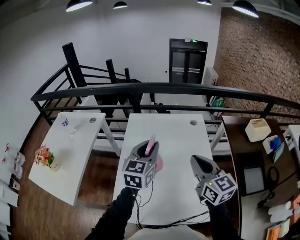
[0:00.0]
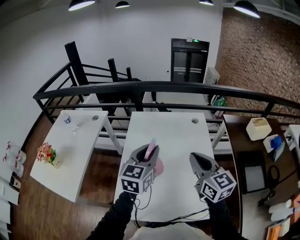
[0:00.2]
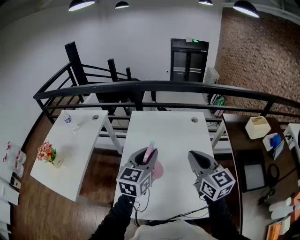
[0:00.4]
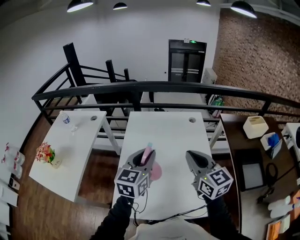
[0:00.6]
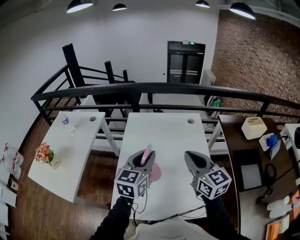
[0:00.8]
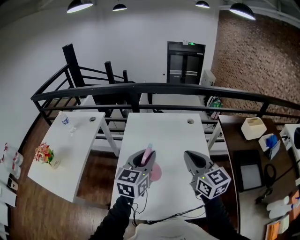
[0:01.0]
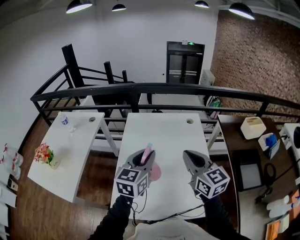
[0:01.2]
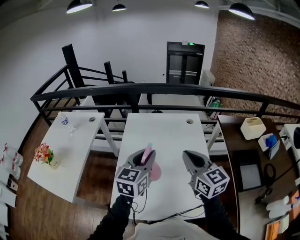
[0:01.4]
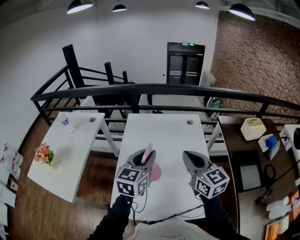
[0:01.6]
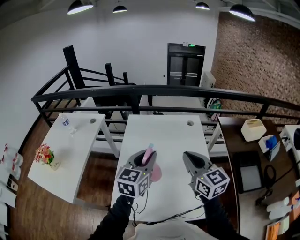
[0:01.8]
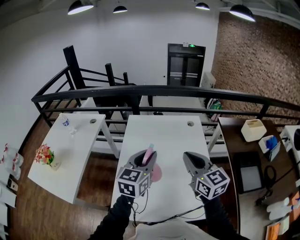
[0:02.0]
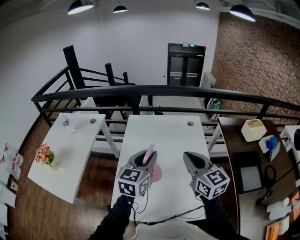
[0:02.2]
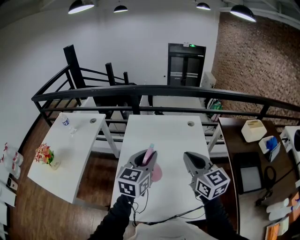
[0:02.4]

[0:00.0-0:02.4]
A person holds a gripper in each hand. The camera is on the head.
0:00.0 to 0:01.2: The left gripper goes approximately 10 cm backward.
0:01.2 to 0:02.4: Both grippers stay about where they are.

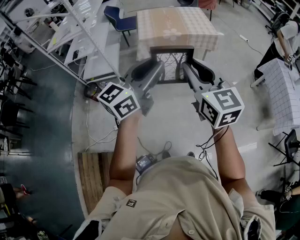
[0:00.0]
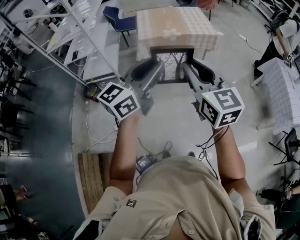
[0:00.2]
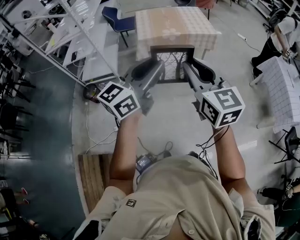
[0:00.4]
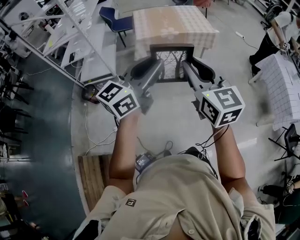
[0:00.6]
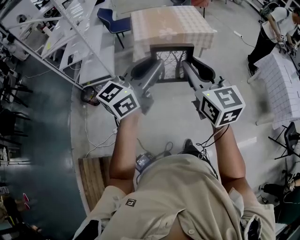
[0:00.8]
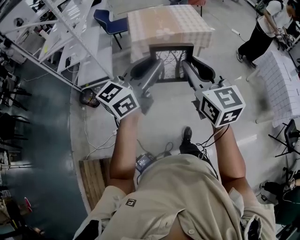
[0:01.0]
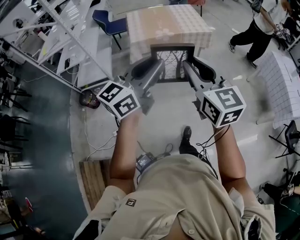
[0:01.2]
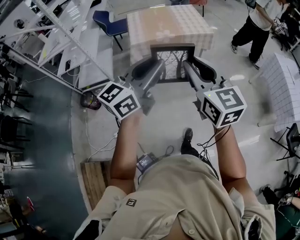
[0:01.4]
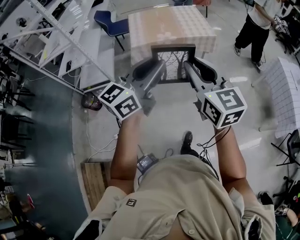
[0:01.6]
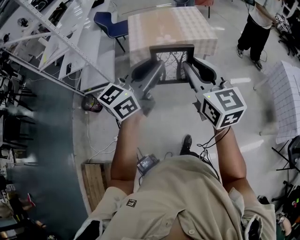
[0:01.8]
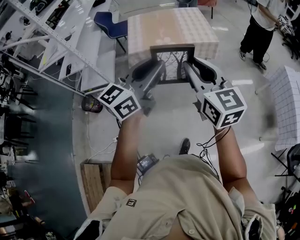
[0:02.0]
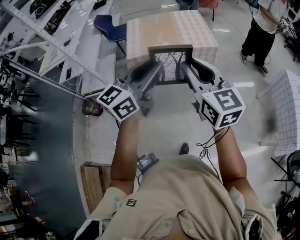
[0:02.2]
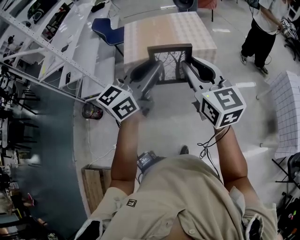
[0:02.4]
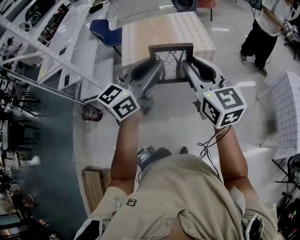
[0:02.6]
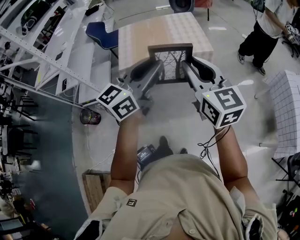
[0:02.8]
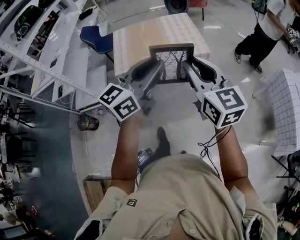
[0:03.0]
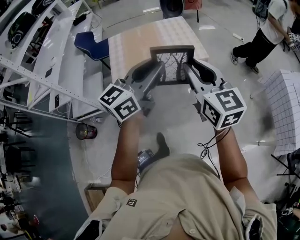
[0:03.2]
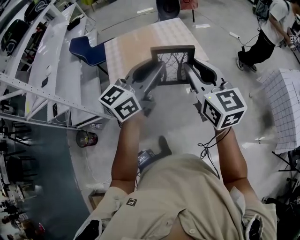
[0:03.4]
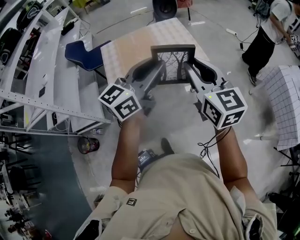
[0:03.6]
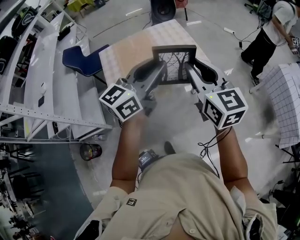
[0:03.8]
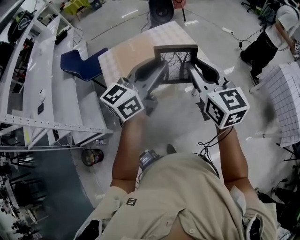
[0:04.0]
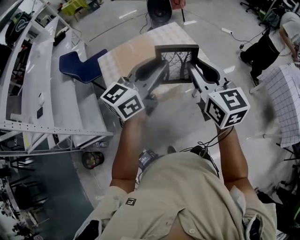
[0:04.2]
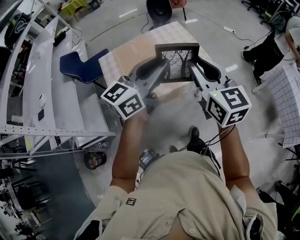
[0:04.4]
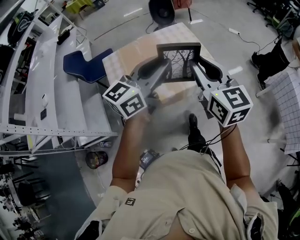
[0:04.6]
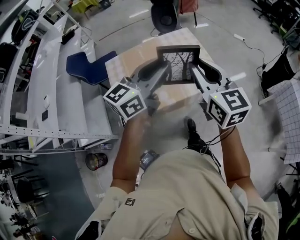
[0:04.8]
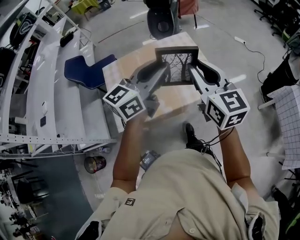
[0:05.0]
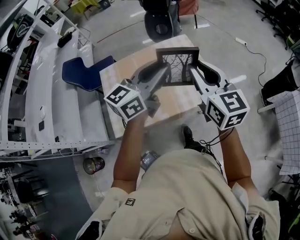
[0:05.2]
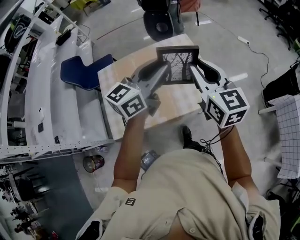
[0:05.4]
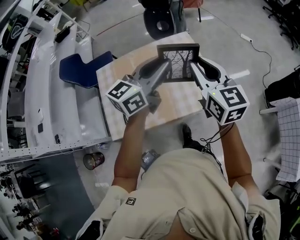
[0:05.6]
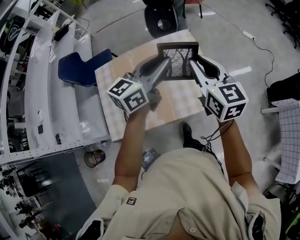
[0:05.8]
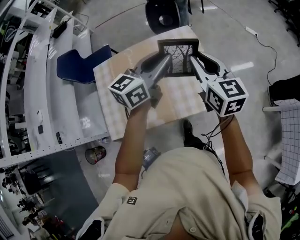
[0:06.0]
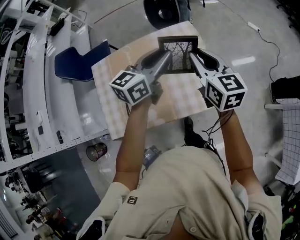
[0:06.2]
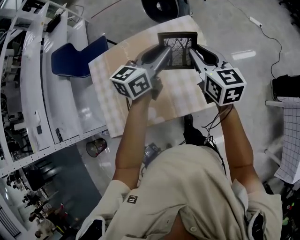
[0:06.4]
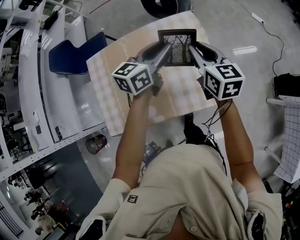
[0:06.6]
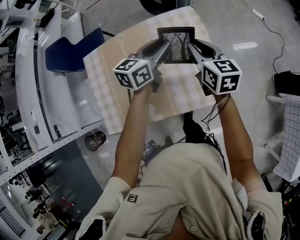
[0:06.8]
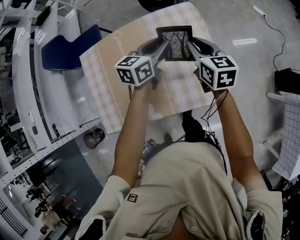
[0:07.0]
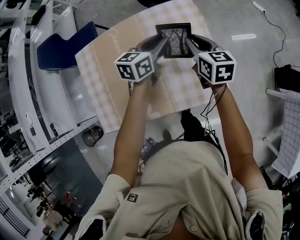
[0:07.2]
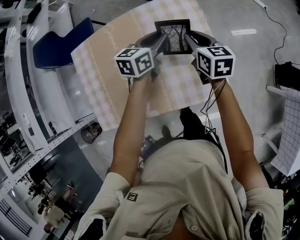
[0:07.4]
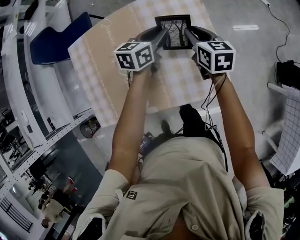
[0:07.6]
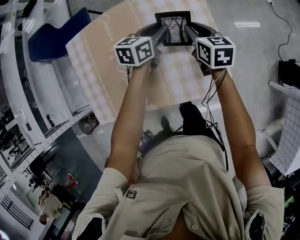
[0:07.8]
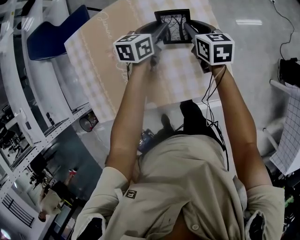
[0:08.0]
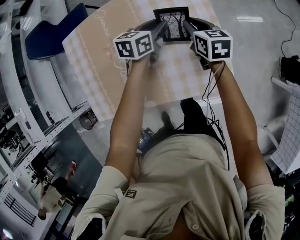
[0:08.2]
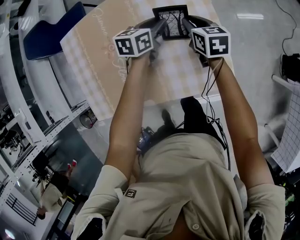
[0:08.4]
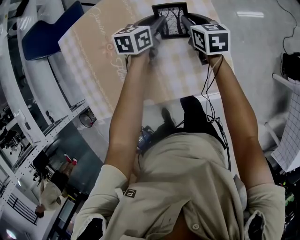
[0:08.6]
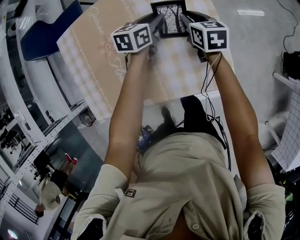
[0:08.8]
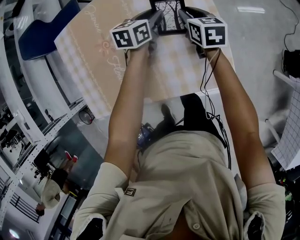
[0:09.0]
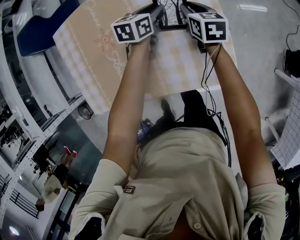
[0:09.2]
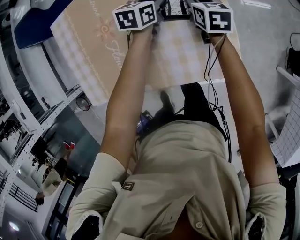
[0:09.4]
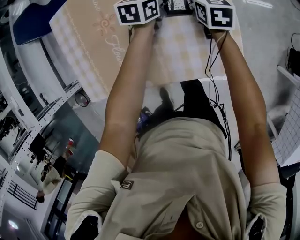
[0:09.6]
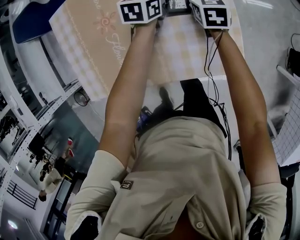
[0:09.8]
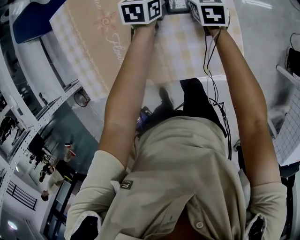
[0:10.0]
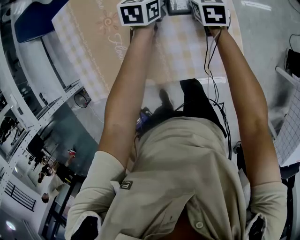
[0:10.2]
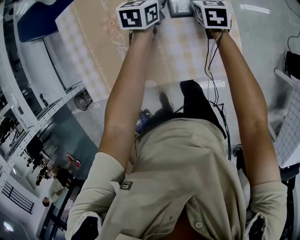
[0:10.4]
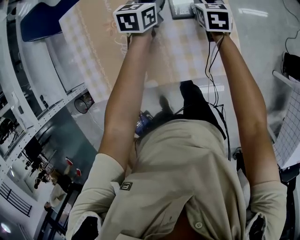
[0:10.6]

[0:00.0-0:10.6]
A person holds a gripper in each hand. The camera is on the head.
0:00.0 to 0:01.6: Both grippers move forward, about 20 cm.
0:01.6 to 0:03.0: Both grippers move forward and to the right, roughly 25 cm.
0:03.0 to 0:04.6: Both grippers travel together forward and to the left, roughly 30 cm.
0:04.6 to 0:06.0: The grippers both shift forward by about 35 cm.
0:06.0 to 0:07.6: The two grippers go about 30 cm downward and forward. The left gripper rotates some 30 degrees. The right gripper changes its angle by roughly 20 degrees.
0:07.6 to 0:09.0: Both grippers move downward, about 10 cm.
0:09.0 to 0:10.6: The left gripper is displaced upward by about 5 cm.

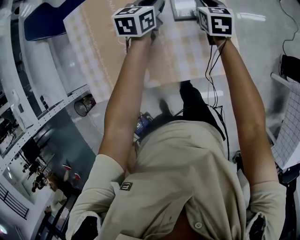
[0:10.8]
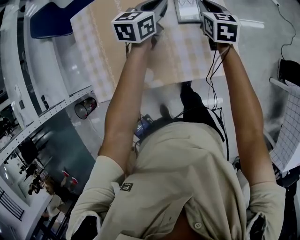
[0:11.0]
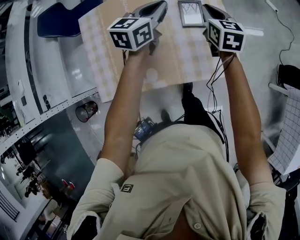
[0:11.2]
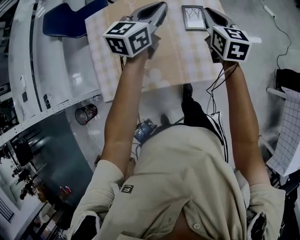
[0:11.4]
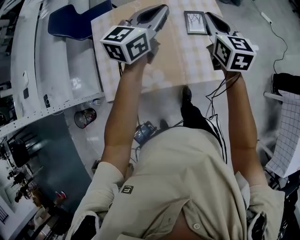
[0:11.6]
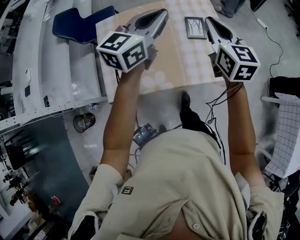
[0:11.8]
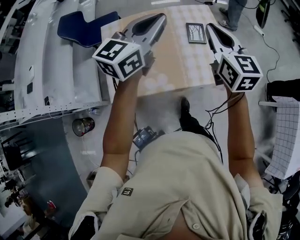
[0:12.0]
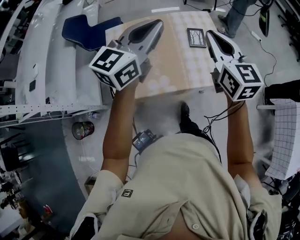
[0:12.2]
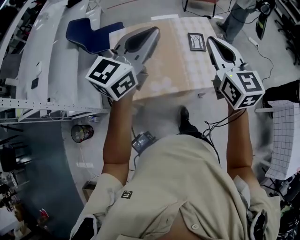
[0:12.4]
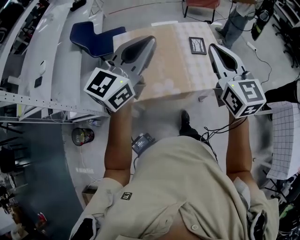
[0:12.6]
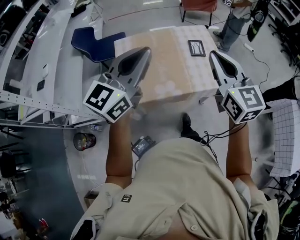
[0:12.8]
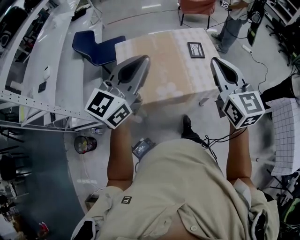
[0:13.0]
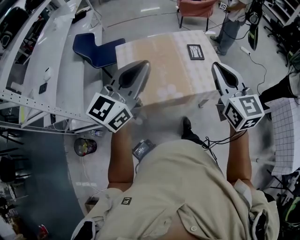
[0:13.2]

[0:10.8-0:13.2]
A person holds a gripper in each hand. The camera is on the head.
0:10.8 to 0:12.0: Both grippers move upward and backward, about 40 cm. The left gripper turns by approximately 30 degrees; the right gripper changes its angle by approximately 30 degrees.
0:12.0 to 0:13.2: Both grippers travel together backward, about 25 cm.

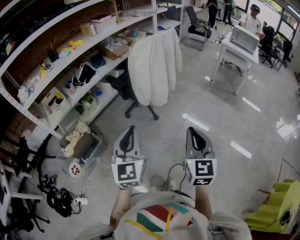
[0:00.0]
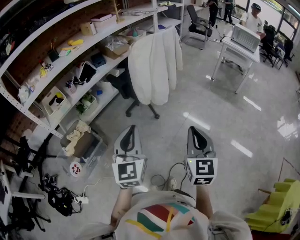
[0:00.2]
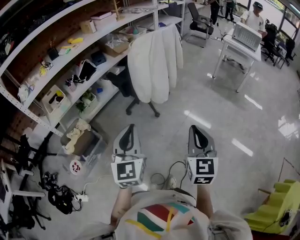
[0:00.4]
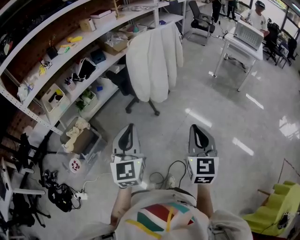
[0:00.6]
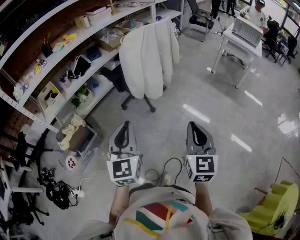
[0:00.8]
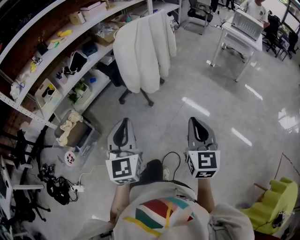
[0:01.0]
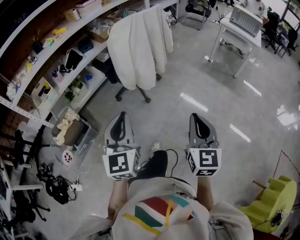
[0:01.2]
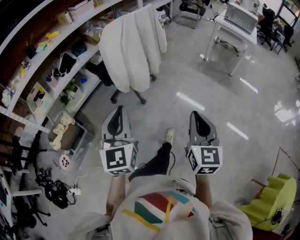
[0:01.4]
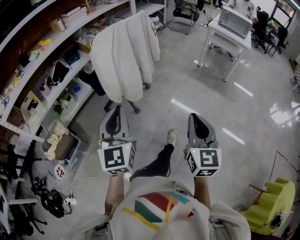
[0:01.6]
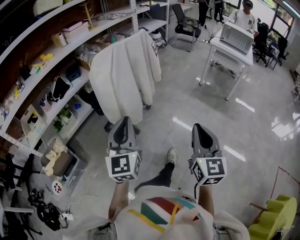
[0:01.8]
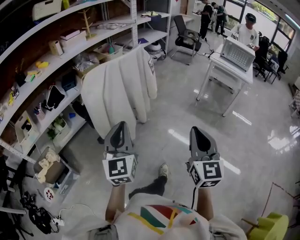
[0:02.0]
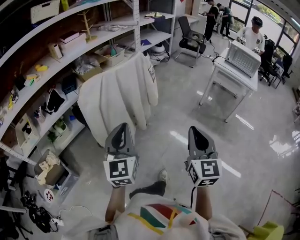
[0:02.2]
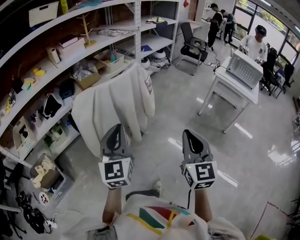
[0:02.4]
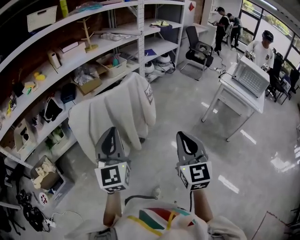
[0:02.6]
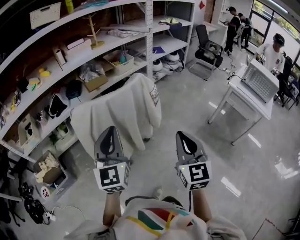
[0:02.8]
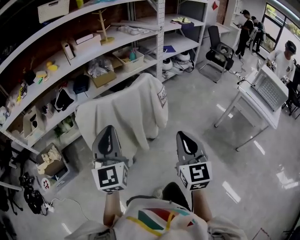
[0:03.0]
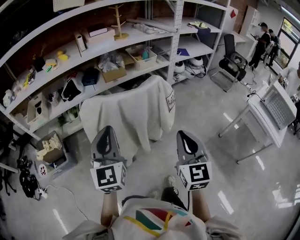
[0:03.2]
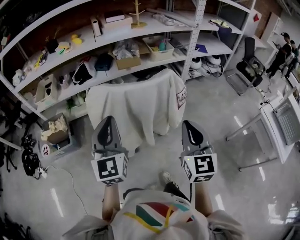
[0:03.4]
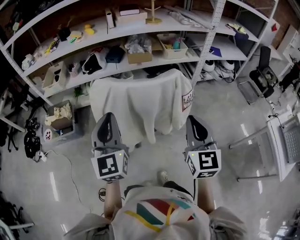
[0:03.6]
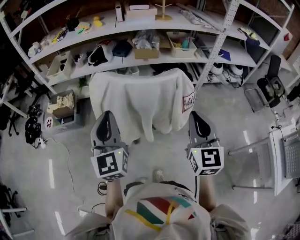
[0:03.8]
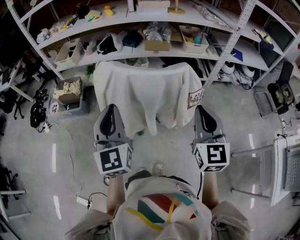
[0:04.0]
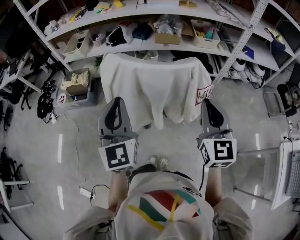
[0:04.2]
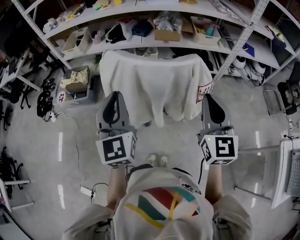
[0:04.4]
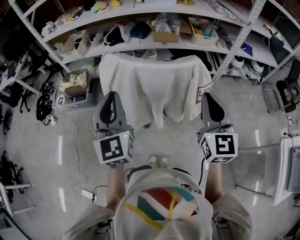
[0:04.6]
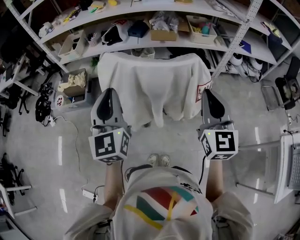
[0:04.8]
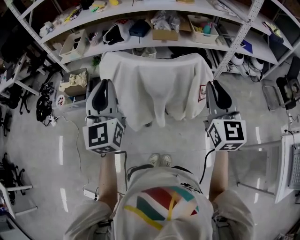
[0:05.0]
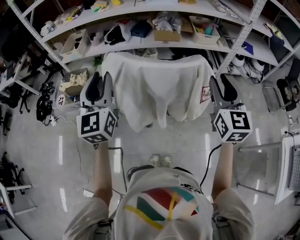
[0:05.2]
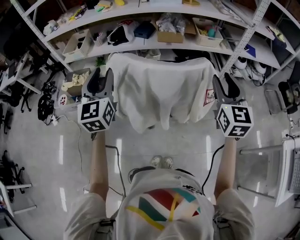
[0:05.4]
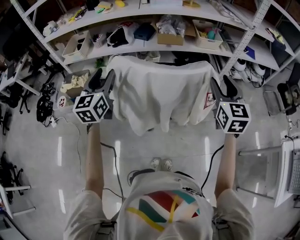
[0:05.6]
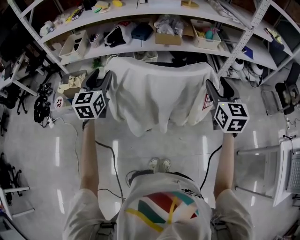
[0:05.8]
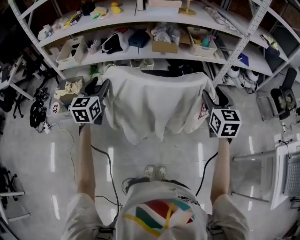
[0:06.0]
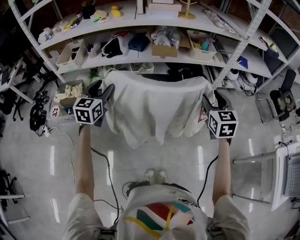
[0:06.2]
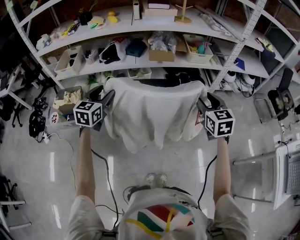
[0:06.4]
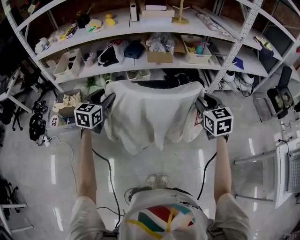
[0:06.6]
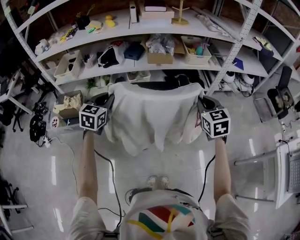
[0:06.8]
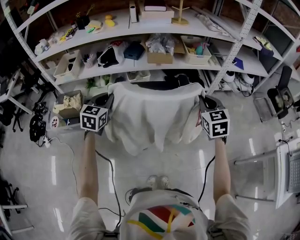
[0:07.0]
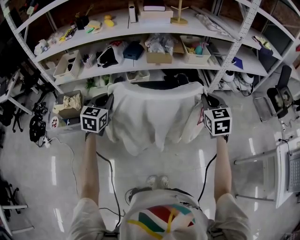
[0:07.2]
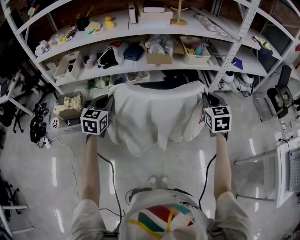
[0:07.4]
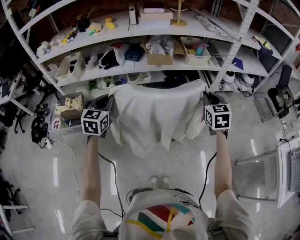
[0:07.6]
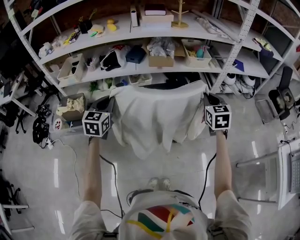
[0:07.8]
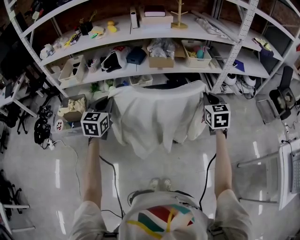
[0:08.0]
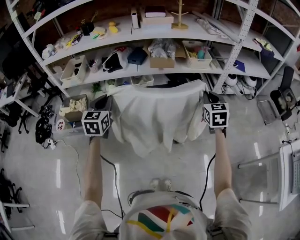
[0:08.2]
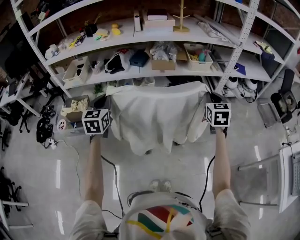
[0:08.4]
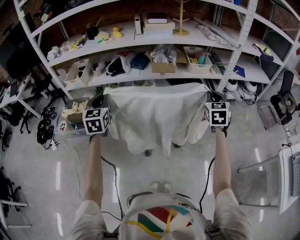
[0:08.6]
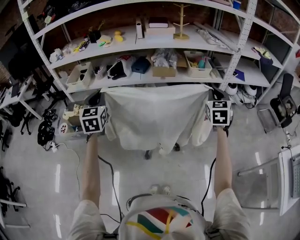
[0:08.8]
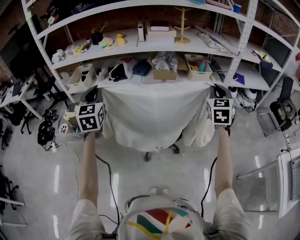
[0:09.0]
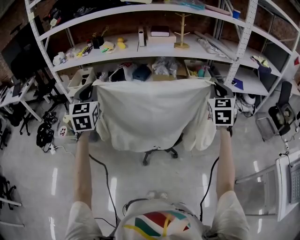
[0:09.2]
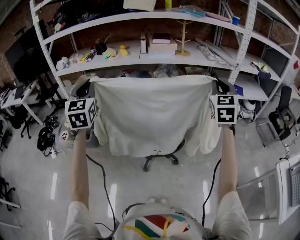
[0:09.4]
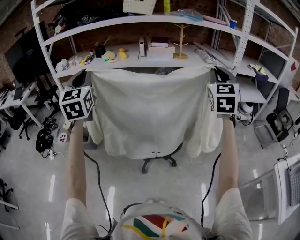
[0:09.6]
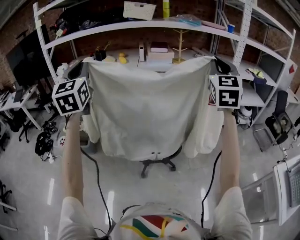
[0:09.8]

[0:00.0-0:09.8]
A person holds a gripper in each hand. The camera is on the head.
0:00.0 to 0:01.4: The grippers both shift to the right and forward by about 15 cm.
0:01.4 to 0:02.8: Both grippers are carried forward, some 50 cm. The right gripper turns by approximately 20 degrees.
0:02.8 to 0:04.2: The right gripper shifts by some 20 cm, and swivels approximately 40 degrees. Meanwhile the left gripper swivels approximately 40 degrees.
0:04.2 to 0:05.6: The right gripper heads forward, covering roughly 10 cm, and opens. Meanwhile the left gripper travels forward and to the left by roughly 20 cm, and opens up.
0:05.6 to 0:07.0: The two grippers go about 10 cm downward and forward. The left gripper changes its angle by about 20 degrees, and closes up; the right gripper closes.
0:07.0 to 0:08.4: The left gripper travels upward by some 5 cm, while the right gripper goes roughly 5 cm to the right.
0:08.4 to 0:09.8: Both grippers move upward, roughly 35 cm. The right gripper tilts its fingers about 30 degrees upward. Meanwhile the left gripper turns by about 30 degrees.
